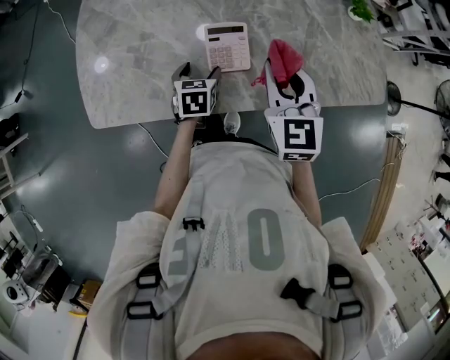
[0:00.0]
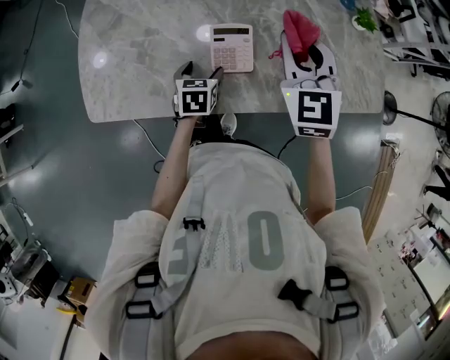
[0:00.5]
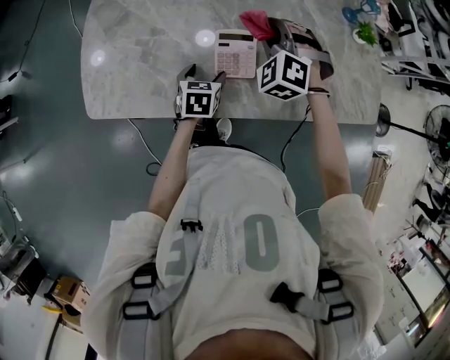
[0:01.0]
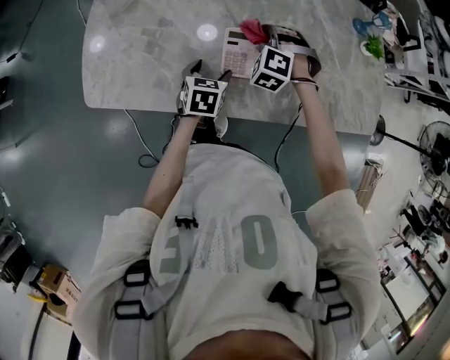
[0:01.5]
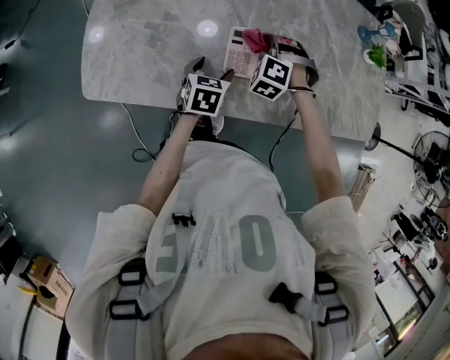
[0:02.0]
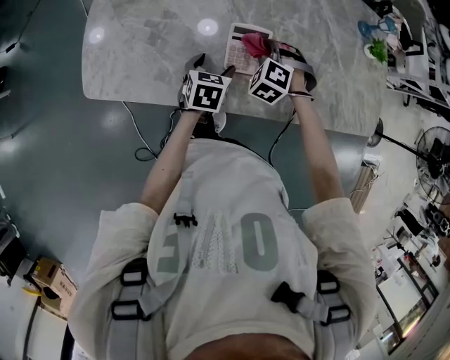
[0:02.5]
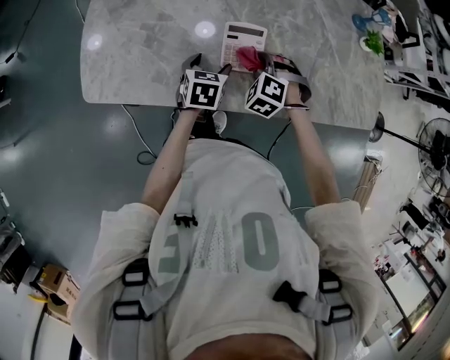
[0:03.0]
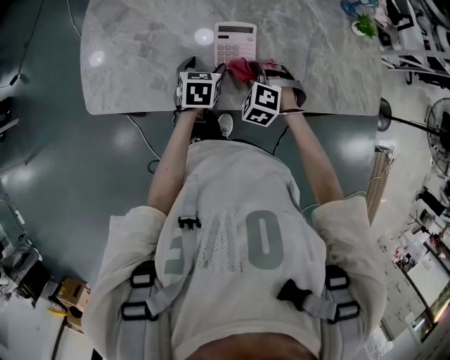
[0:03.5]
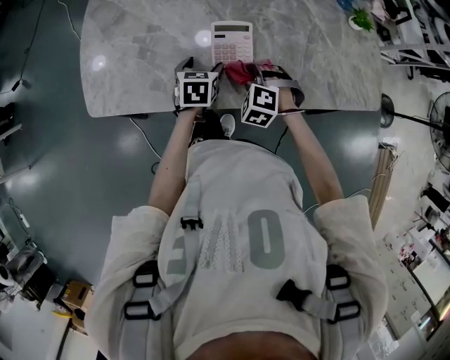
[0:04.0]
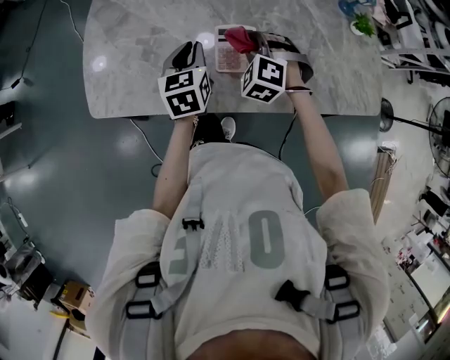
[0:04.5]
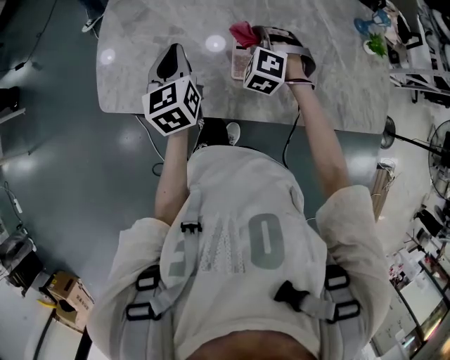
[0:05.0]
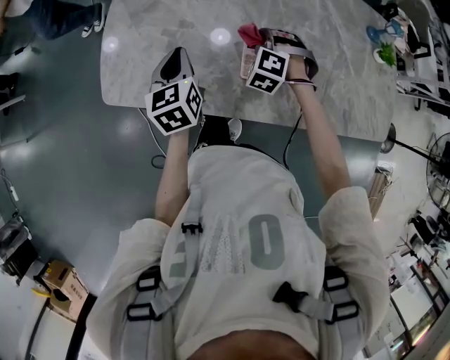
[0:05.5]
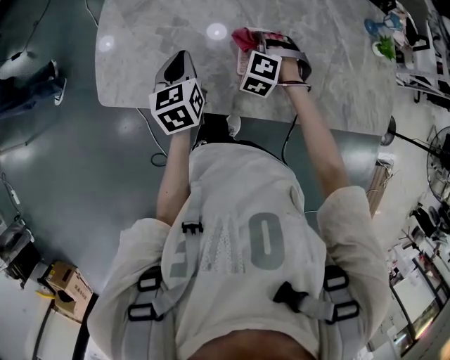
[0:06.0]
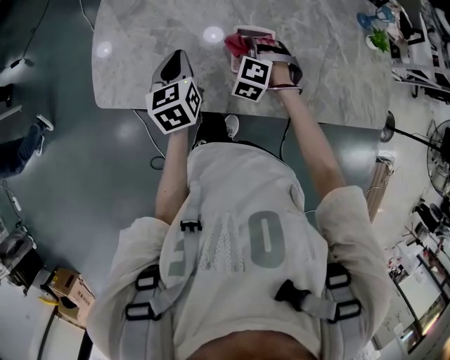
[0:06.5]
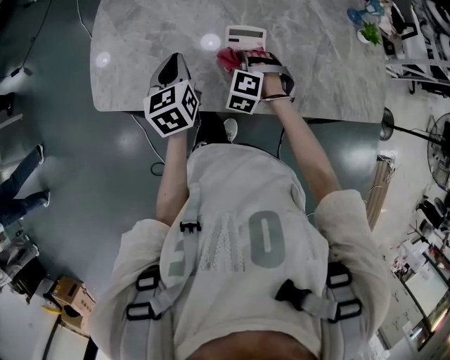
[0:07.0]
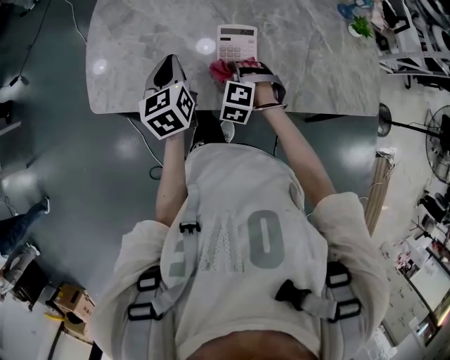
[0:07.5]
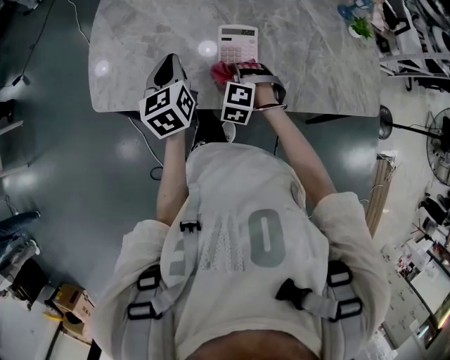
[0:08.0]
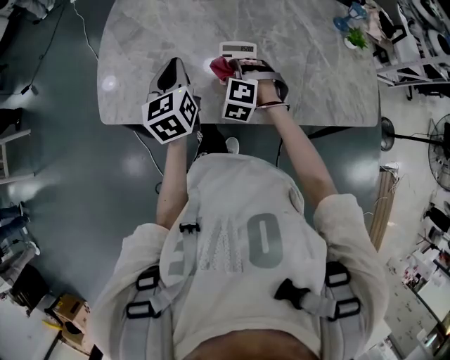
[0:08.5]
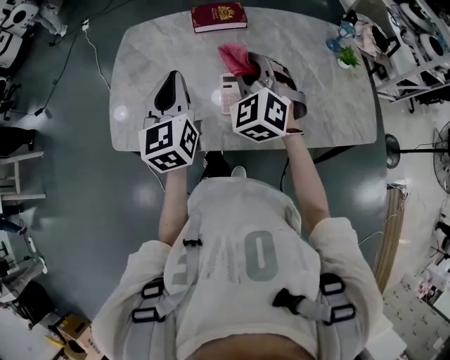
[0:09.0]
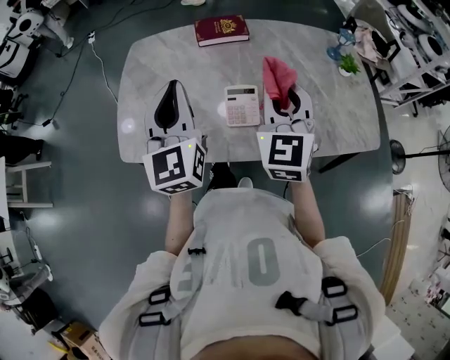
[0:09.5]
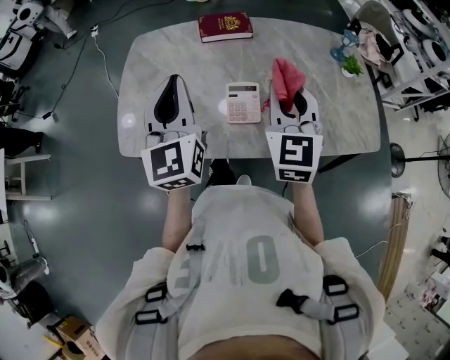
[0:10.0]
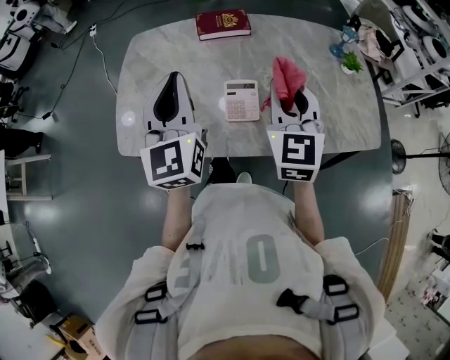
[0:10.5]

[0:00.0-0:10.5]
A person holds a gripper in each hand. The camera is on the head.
0:00.0 to 0:02.0: The right gripper moves downward, forward and to the left, approximately 20 cm, and rolls counterclockwise, seen from behind, by approximately 70 degrees.
0:02.0 to 0:04.0: The right gripper travels backward by approximately 15 cm.
0:04.0 to 0:06.5: The right gripper goes about 10 cm forward and to the left. Meanwhile the left gripper travels to the left and upward by roughly 15 cm, turns by some 30 degrees, and closes up.
0:06.5 to 0:08.5: The right gripper heads backward, covering some 5 cm; the left gripper heads upward, covering approximately 5 cm.
0:08.5 to 0:10.5: The grippers both shift upward by about 25 cm. The left gripper turns by about 30 degrees. The right gripper points its fingers some 40 degrees further upward.

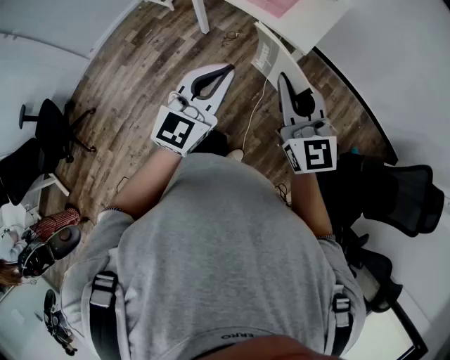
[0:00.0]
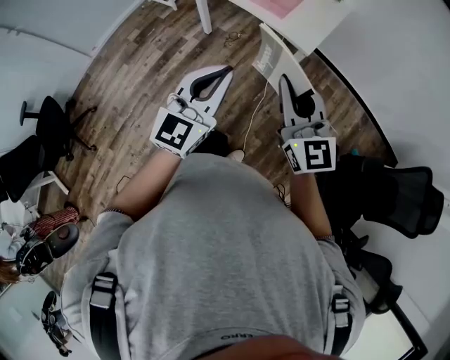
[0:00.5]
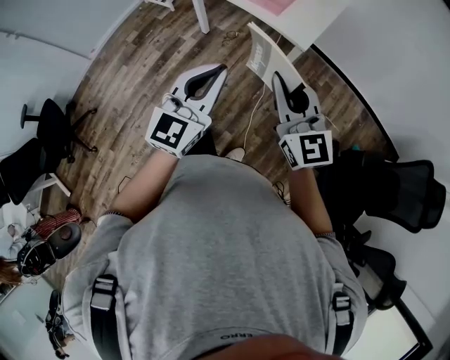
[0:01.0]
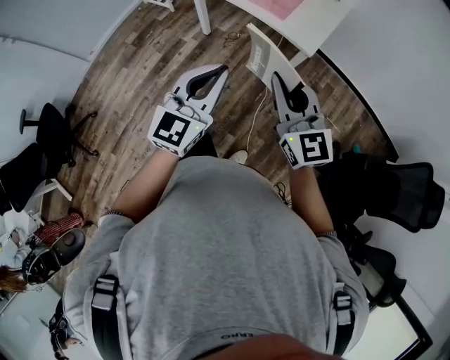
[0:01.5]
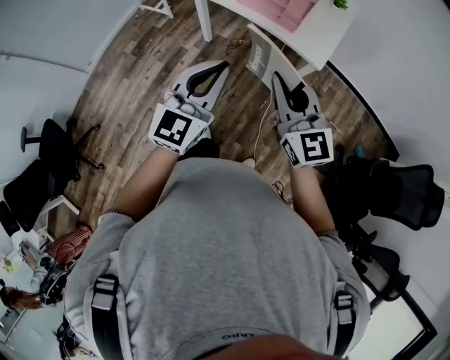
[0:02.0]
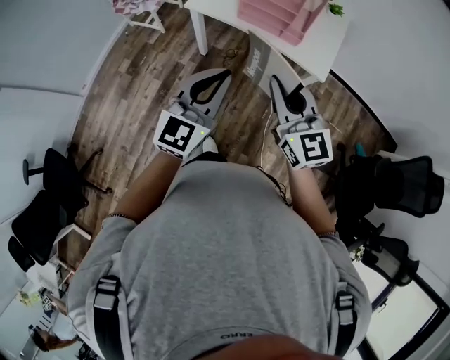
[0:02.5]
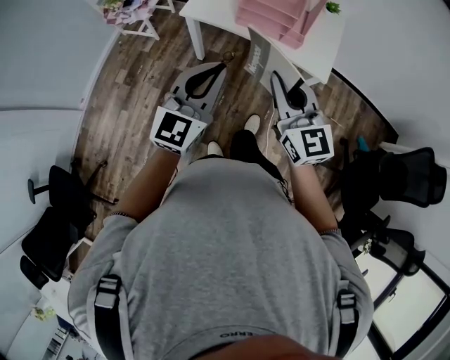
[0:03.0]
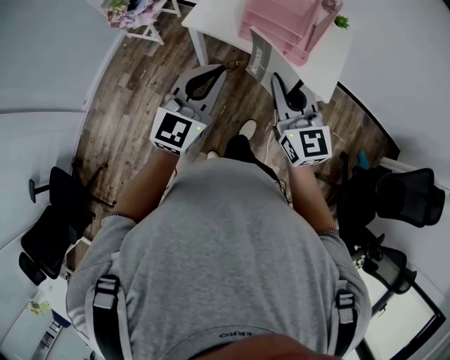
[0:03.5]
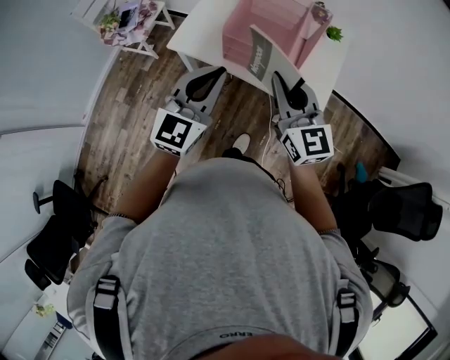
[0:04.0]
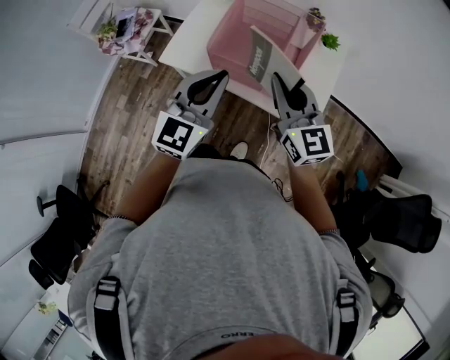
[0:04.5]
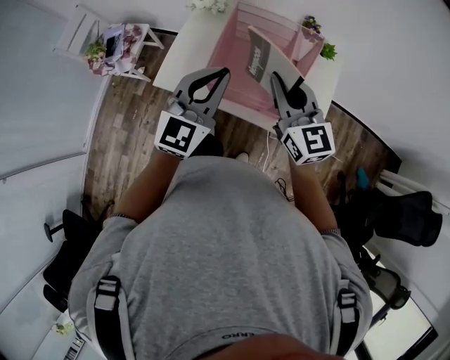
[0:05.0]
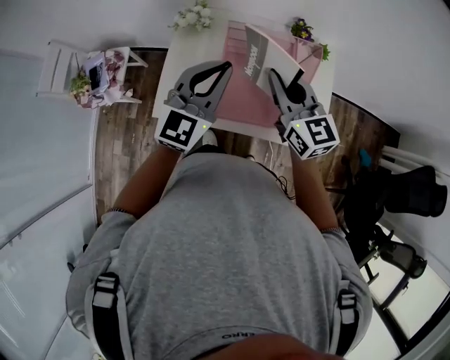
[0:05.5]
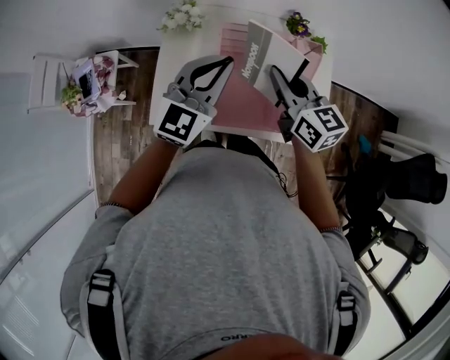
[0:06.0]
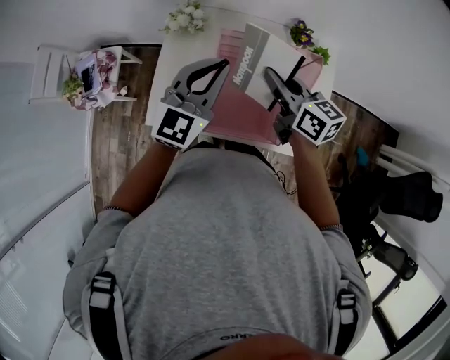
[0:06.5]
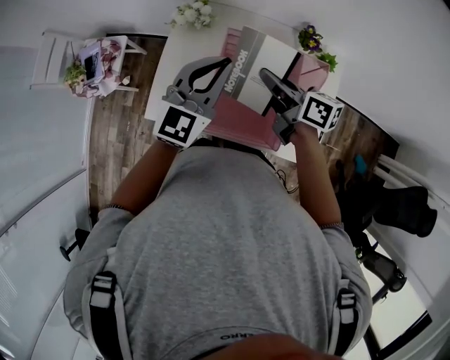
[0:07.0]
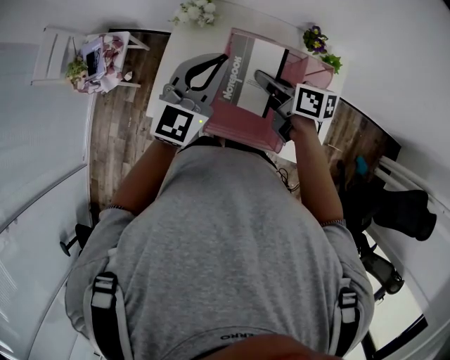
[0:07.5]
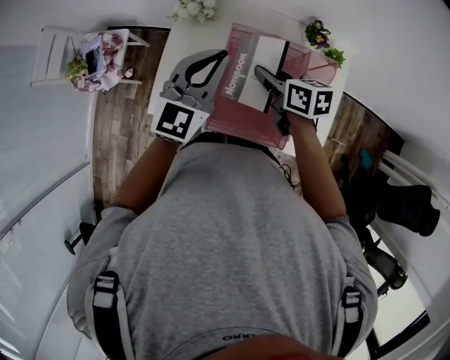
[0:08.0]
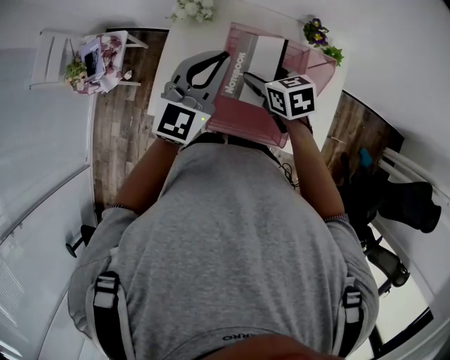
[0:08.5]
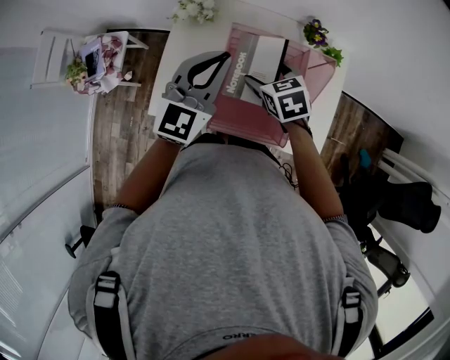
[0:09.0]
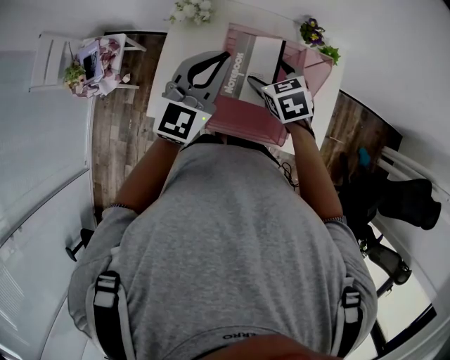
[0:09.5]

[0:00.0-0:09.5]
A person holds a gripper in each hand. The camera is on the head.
0:00.0 to 0:02.0: The grippers both shift to the left and forward by roughly 15 cm.
0:02.0 to 0:04.0: Both grippers travel together forward, about 30 cm.
0:04.0 to 0:05.5: Both grippers travel together forward, some 25 cm.
0:05.5 to 0:07.5: The left gripper travels forward by roughly 10 cm. The right gripper travels downward and forward by about 15 cm, and rotates around the line of its fingers by approximately 40 degrees, clockwise from behind.
0:07.5 to 0:09.5: The right gripper turns by some 50 degrees, and opens.

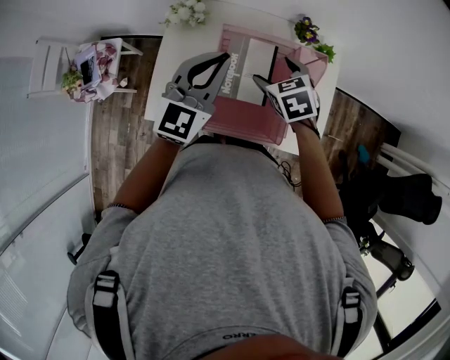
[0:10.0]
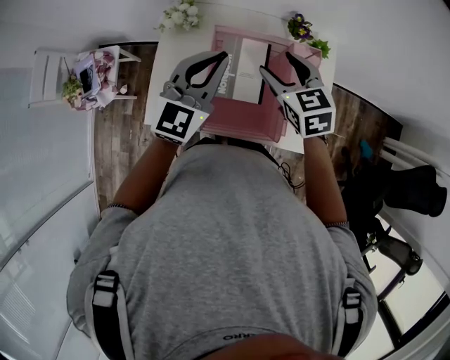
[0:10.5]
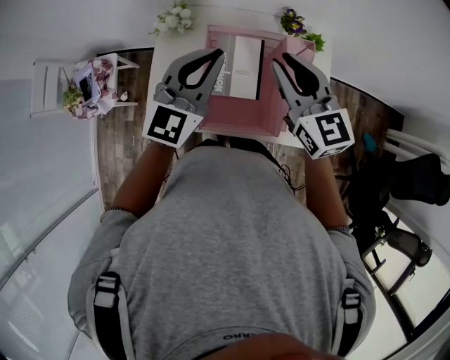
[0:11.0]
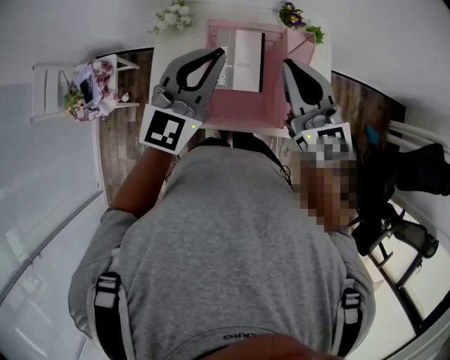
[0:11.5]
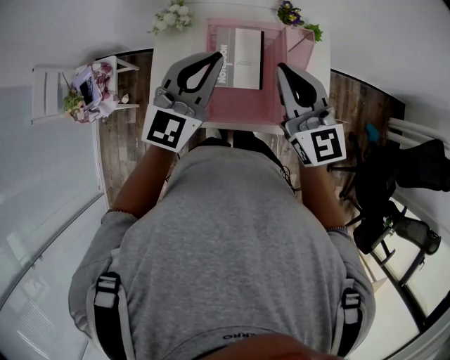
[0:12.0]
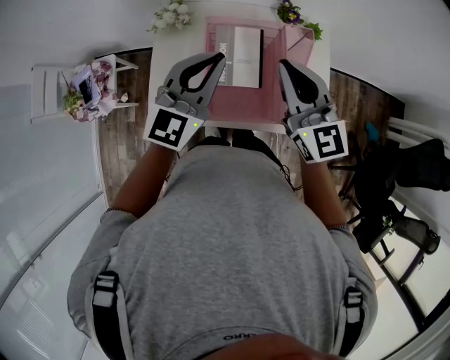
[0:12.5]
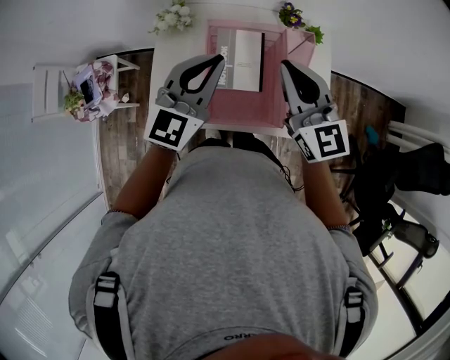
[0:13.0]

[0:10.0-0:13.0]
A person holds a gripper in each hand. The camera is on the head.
0:10.0 to 0:11.5: The right gripper travels upward and backward by about 20 cm, points its fingers some 50 degrees further upward, and closes. Meanwhile the left gripper moves upward, roughly 5 cm.
0:11.5 to 0:13.0: The grippers stay close to where they were, moving slightly.

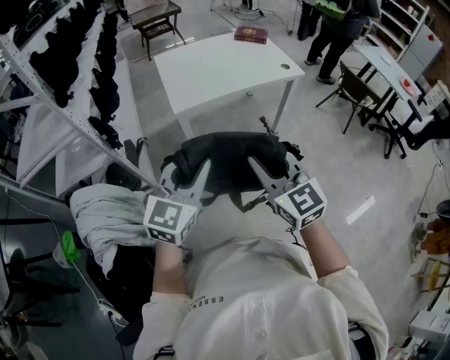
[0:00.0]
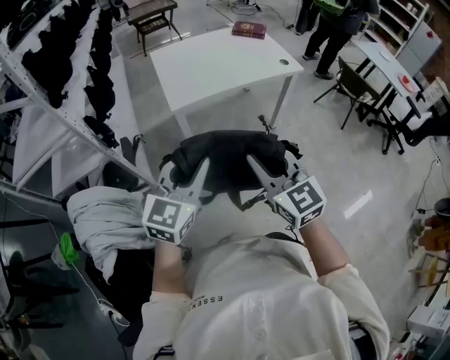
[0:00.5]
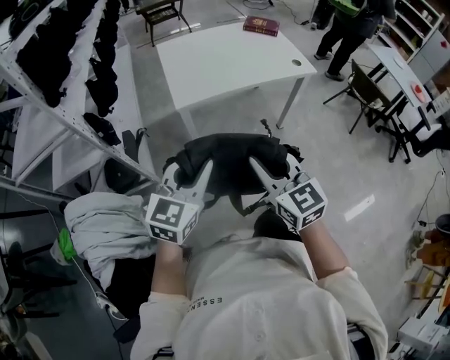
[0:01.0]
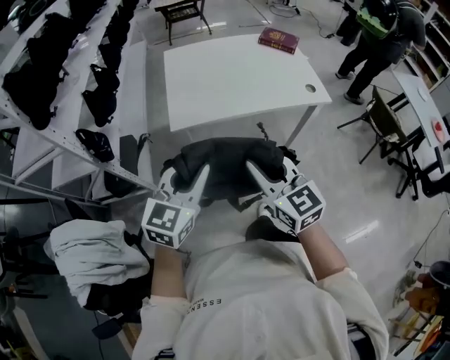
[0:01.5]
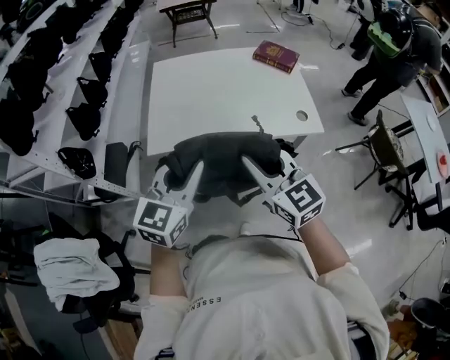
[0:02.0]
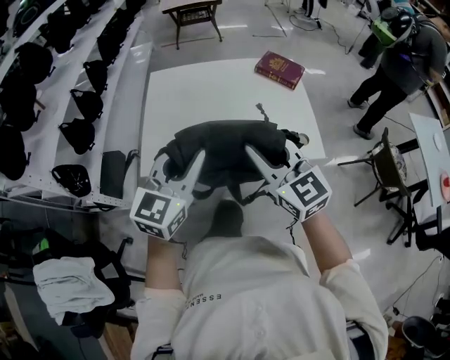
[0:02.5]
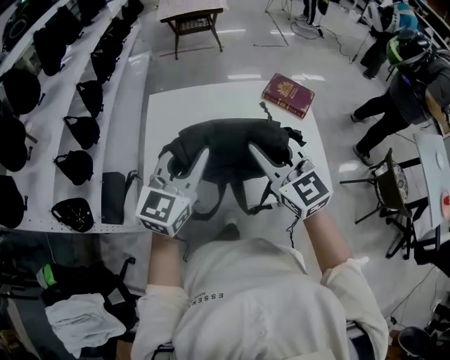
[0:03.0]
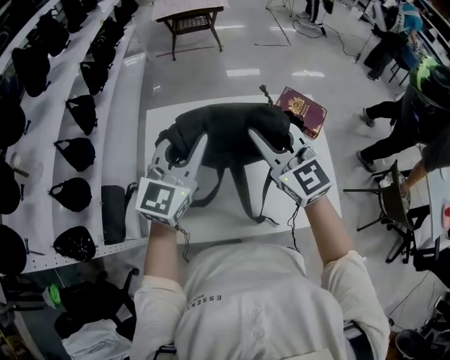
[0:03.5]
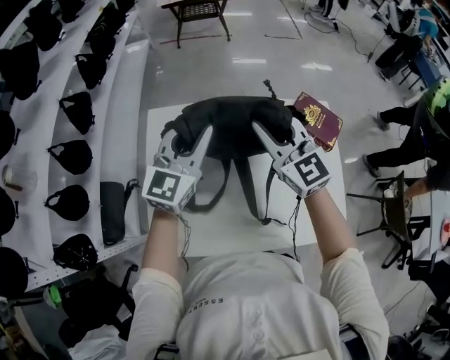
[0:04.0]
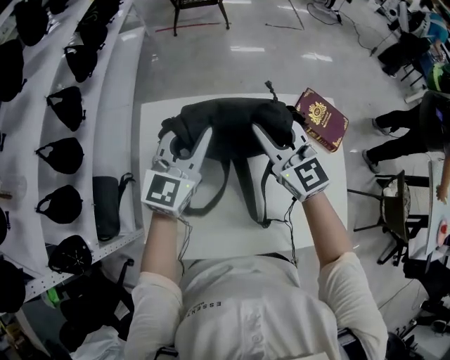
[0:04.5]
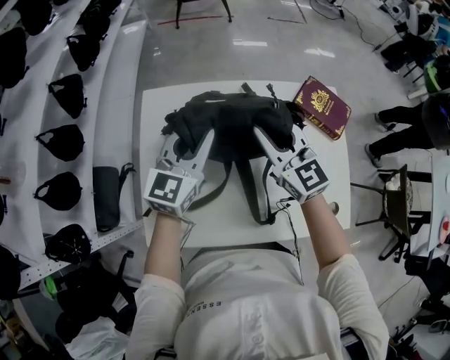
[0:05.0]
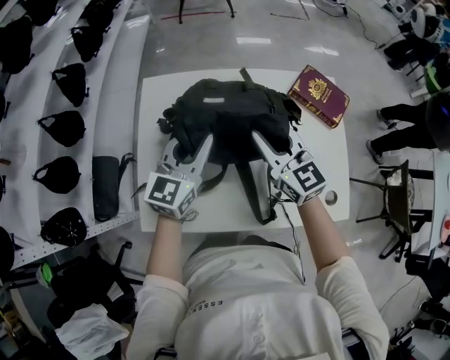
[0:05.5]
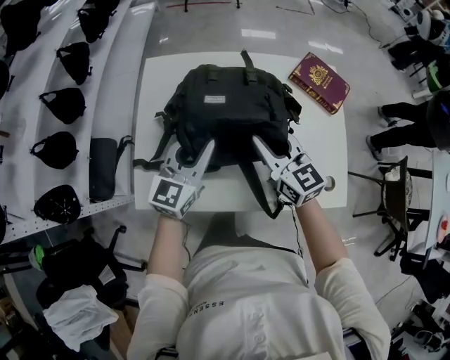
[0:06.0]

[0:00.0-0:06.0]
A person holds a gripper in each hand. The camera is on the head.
0:00.0 to 0:02.0: The two grippers go some 35 cm forward and to the right. The right gripper turns by about 20 degrees.
0:02.0 to 0:04.0: Both grippers are carried forward, some 50 cm.
0:04.0 to 0:06.0: Both grippers move backward and downward, some 20 cm. The right gripper turns by some 20 degrees.
